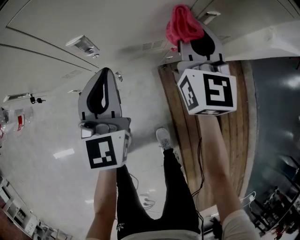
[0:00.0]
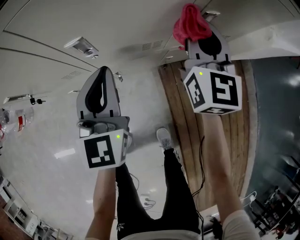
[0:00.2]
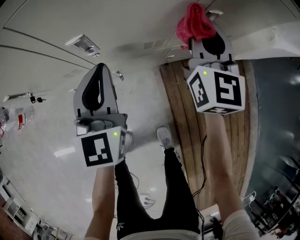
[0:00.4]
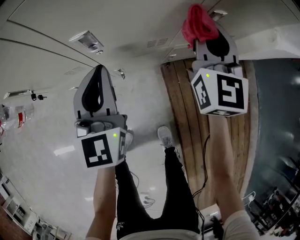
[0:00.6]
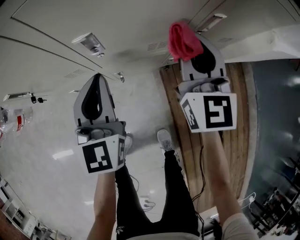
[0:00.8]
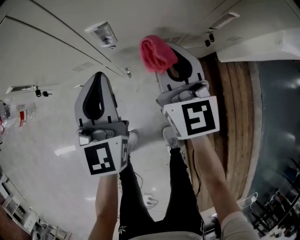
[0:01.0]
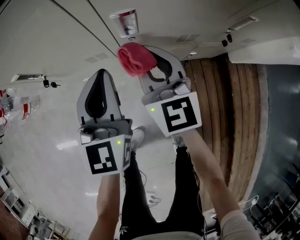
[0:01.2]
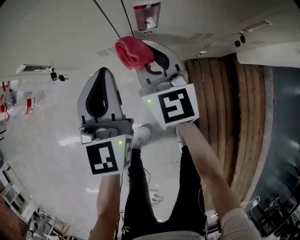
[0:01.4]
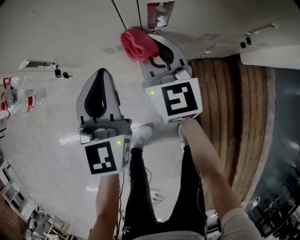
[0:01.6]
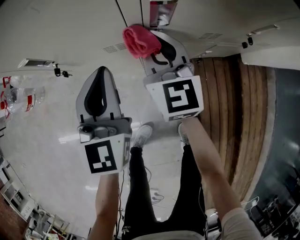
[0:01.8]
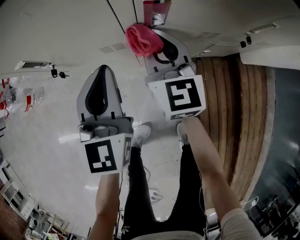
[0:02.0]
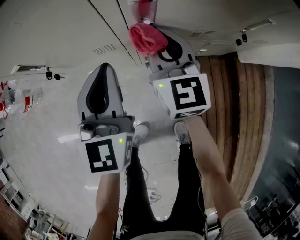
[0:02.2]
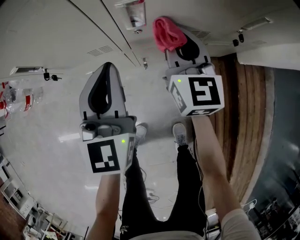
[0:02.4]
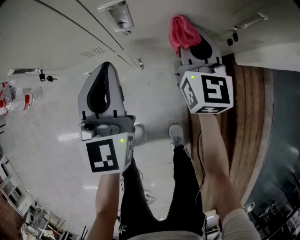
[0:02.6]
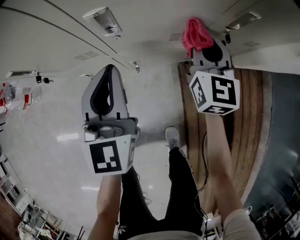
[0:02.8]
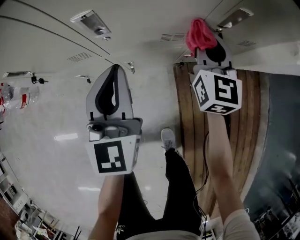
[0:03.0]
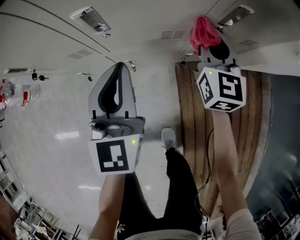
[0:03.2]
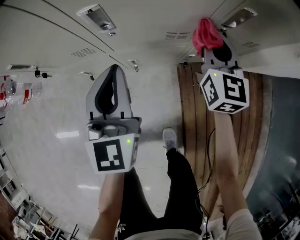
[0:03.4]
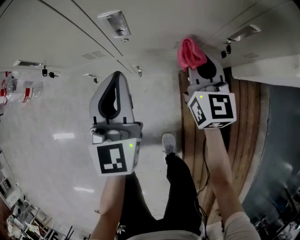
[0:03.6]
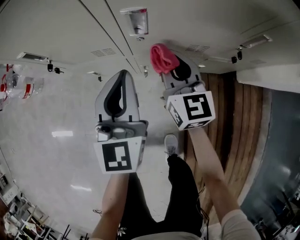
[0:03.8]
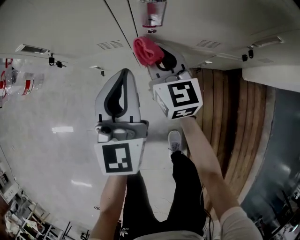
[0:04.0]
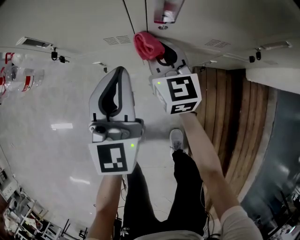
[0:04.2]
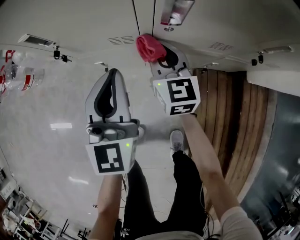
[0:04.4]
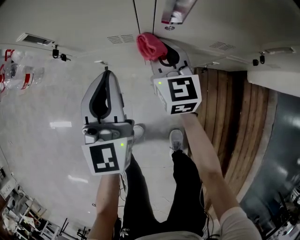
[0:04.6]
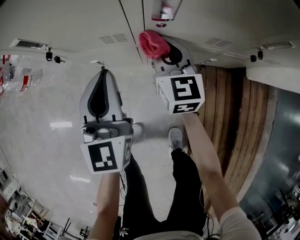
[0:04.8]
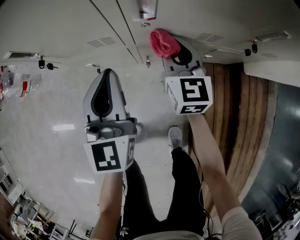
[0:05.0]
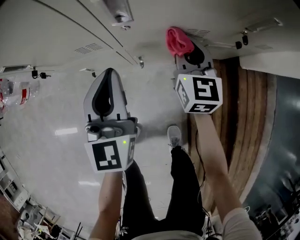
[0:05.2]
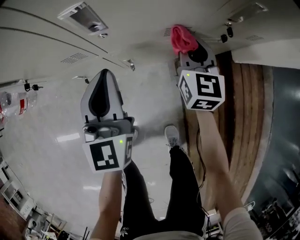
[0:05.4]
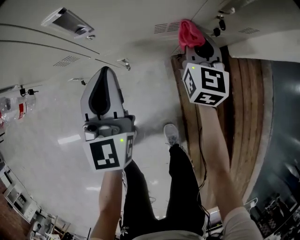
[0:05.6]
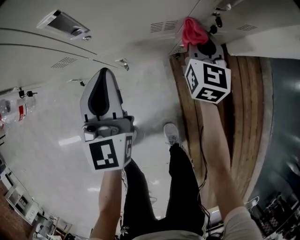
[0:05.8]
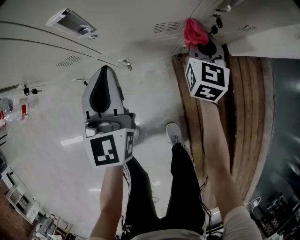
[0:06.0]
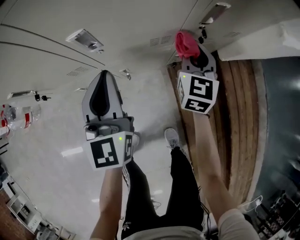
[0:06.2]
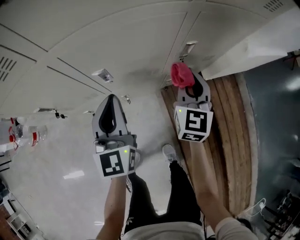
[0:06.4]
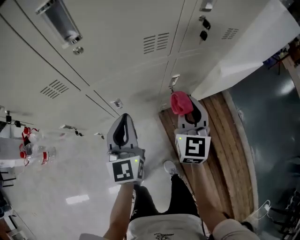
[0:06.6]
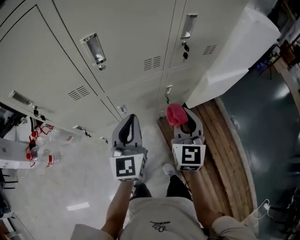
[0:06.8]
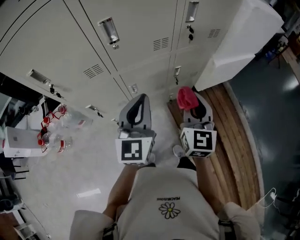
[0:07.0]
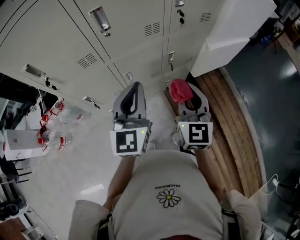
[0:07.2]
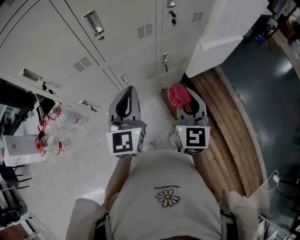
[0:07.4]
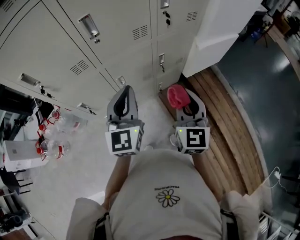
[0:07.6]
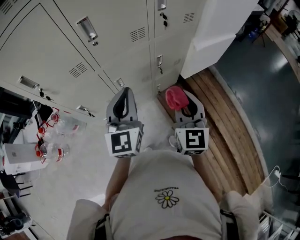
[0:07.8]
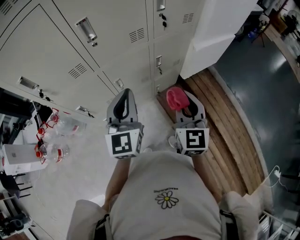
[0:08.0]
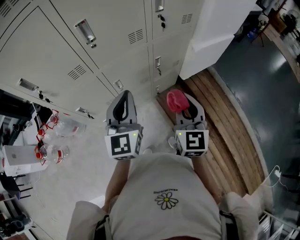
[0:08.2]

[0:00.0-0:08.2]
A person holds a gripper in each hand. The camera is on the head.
0:00.0 to 0:01.6: The right gripper travels to the left by approximately 25 cm, and rotates some 20 degrees, while the left gripper goes approximately 15 cm to the left.
0:01.6 to 0:03.2: The left gripper travels to the right by about 15 cm. The right gripper shifts approximately 30 cm to the right.
0:03.2 to 0:05.0: The right gripper heads to the left and downward, covering some 20 cm. The left gripper goes about 10 cm to the left.
0:05.0 to 0:06.6: The right gripper shifts some 25 cm to the right, downward and backward, and swivels approximately 30 degrees. The left gripper goes approximately 25 cm downward and to the right.
0:06.6 to 0:08.2: The right gripper moves backward and upward, approximately 25 cm. The left gripper moves upward and backward, approximately 20 cm.

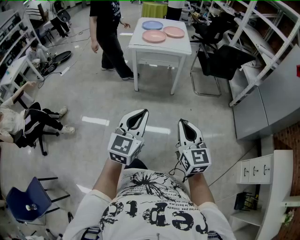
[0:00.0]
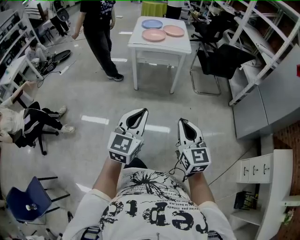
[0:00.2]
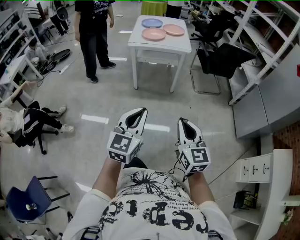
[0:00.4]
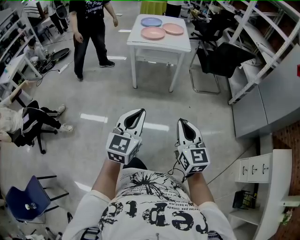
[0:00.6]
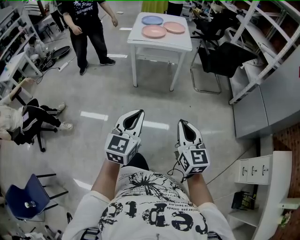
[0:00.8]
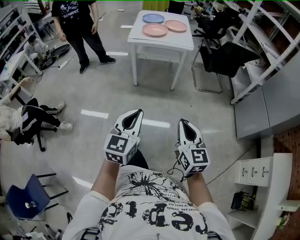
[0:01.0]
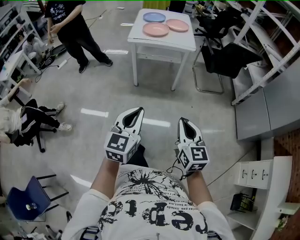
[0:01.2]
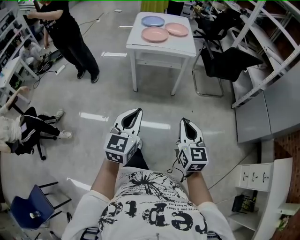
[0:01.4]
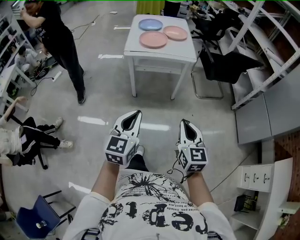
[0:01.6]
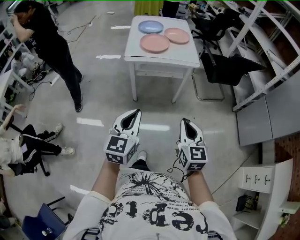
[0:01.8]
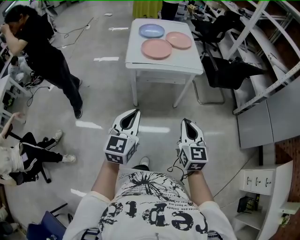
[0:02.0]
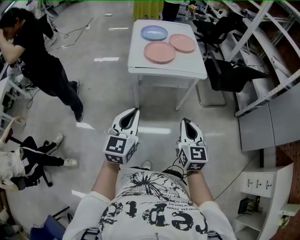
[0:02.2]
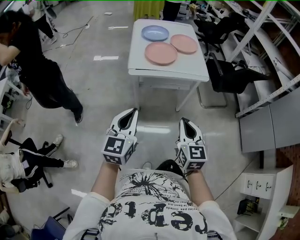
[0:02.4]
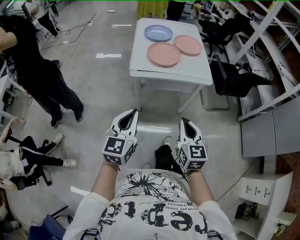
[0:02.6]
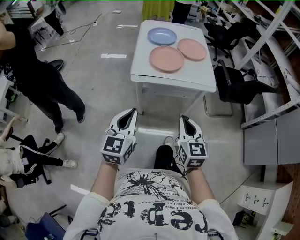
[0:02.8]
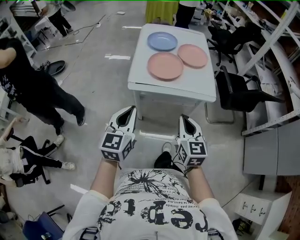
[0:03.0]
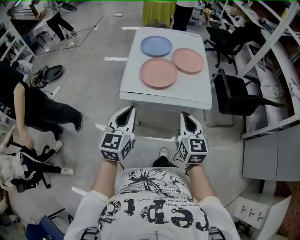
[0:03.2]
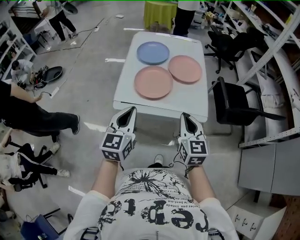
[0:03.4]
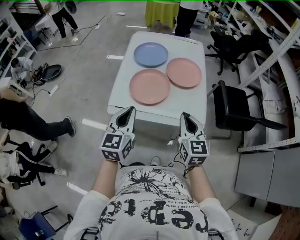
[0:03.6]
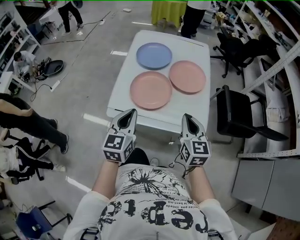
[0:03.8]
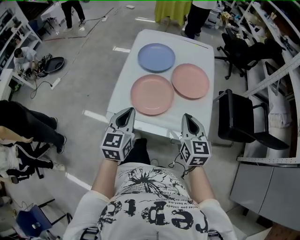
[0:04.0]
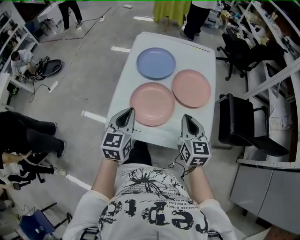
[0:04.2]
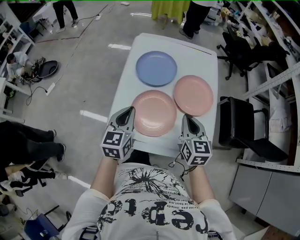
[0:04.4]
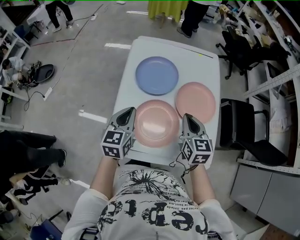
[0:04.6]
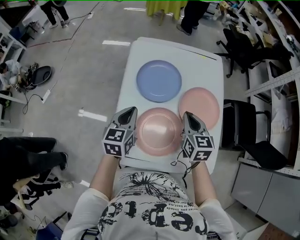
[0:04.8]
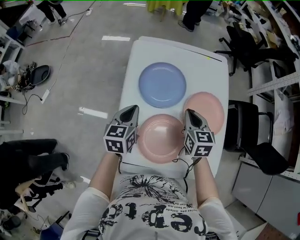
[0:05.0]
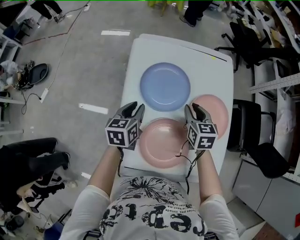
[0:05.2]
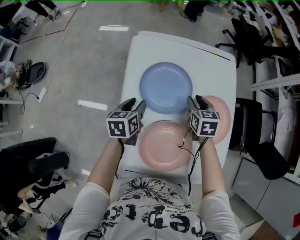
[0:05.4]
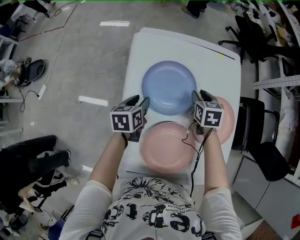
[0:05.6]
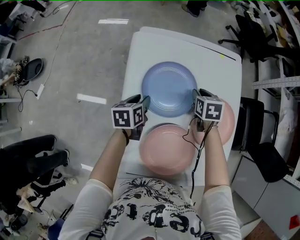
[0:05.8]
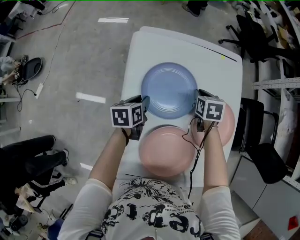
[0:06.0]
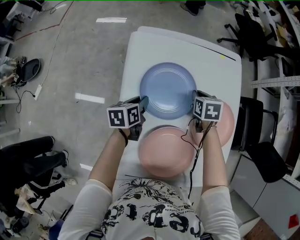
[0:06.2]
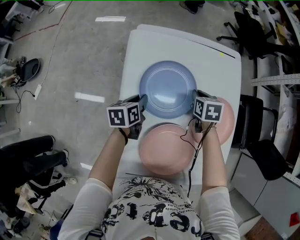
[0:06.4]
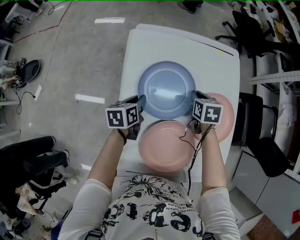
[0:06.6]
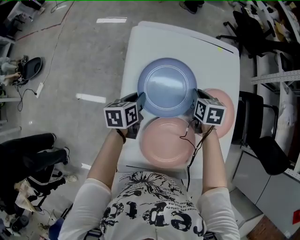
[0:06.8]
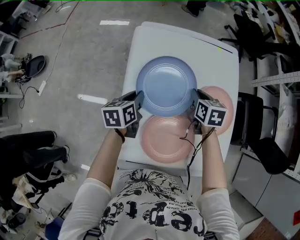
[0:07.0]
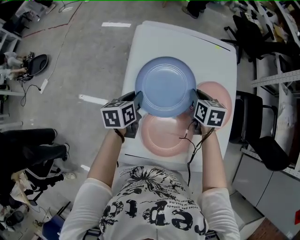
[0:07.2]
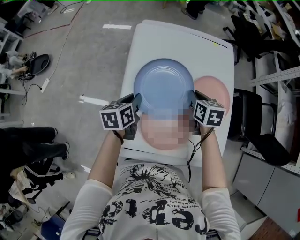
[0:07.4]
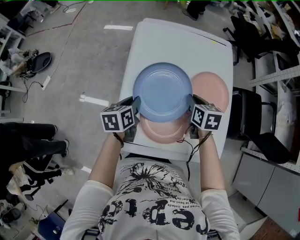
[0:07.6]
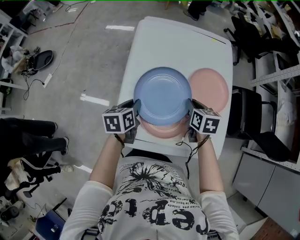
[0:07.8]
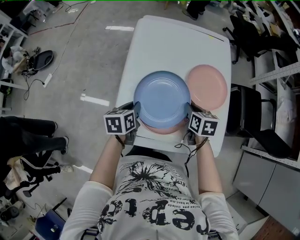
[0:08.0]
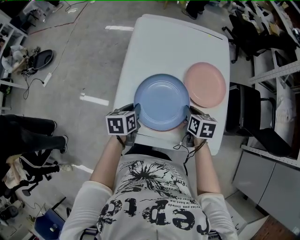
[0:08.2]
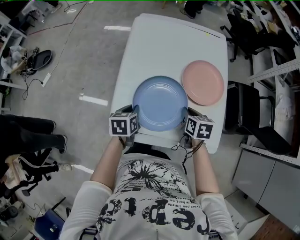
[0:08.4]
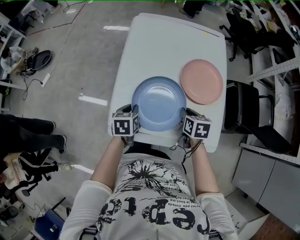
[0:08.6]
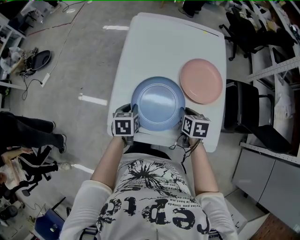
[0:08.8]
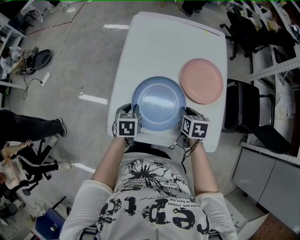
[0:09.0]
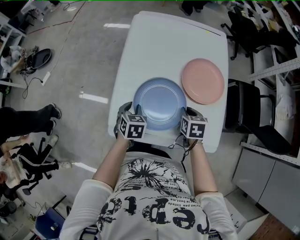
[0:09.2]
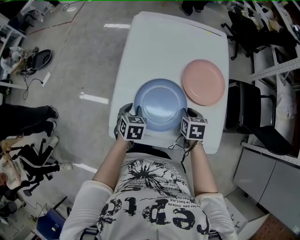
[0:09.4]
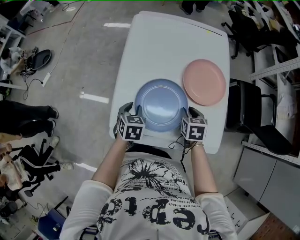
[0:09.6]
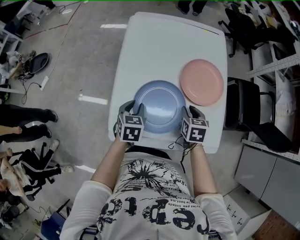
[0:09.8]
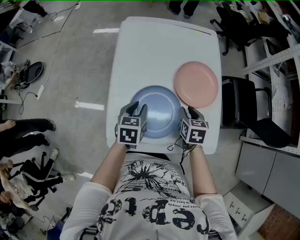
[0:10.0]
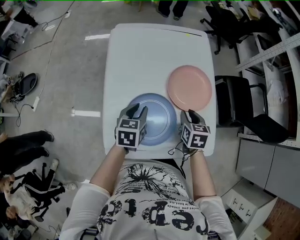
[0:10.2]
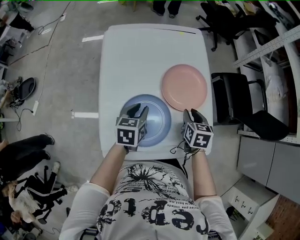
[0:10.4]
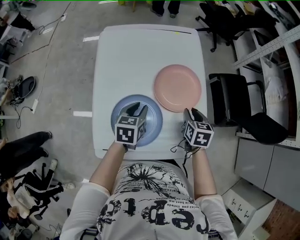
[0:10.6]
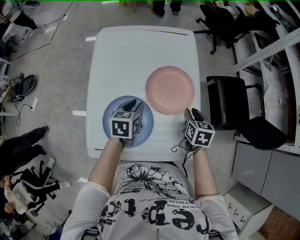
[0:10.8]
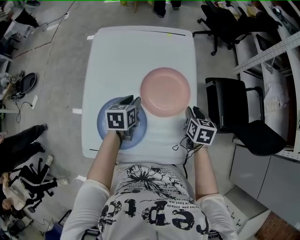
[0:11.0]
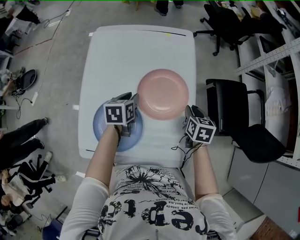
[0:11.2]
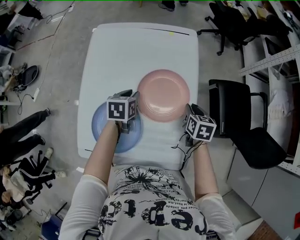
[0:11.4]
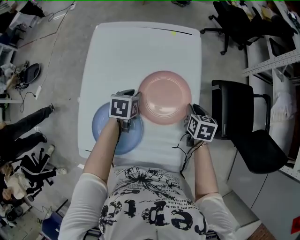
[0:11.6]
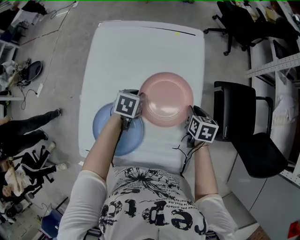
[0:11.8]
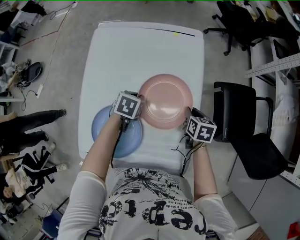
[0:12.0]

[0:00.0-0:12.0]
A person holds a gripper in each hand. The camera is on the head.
0:00.0 to 0:01.6: The two grippers go some 25 cm forward.
0:01.6 to 0:03.0: The two grippers travel together, forward, about 40 cm.
0:03.0 to 0:04.4: The two grippers travel together, forward, roughly 50 cm.
0:04.4 to 0:06.0: Both grippers move forward and downward, roughly 40 cm. The left gripper changes its angle by roughly 40 degrees, and opens its fingers. Meanwhile the right gripper tilts its fingers about 40 degrees downward.
0:06.0 to 0:07.6: The left gripper goes roughly 20 cm backward and upward, while the right gripper goes approximately 20 cm backward.
0:07.6 to 0:09.0: The grippers both shift backward and downward by roughly 15 cm. The left gripper rotates about 20 degrees.
0:09.0 to 0:10.4: The left gripper moves some 15 cm, and changes its angle by about 20 degrees, while the right gripper moves approximately 10 cm.
0:10.4 to 0:12.0: Both grippers travel together forward, to the right and downward, some 20 cm. The left gripper swivels some 20 degrees.

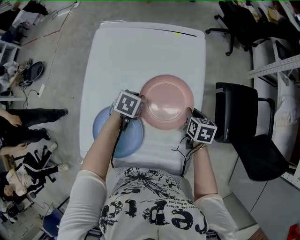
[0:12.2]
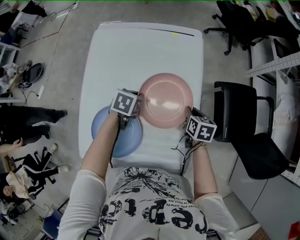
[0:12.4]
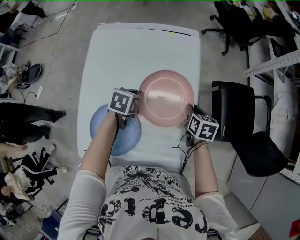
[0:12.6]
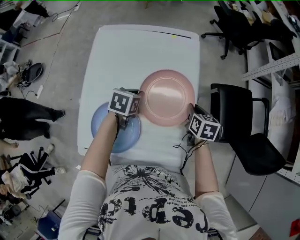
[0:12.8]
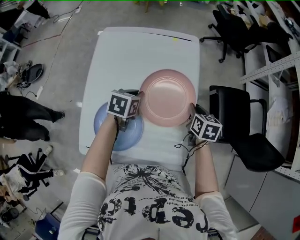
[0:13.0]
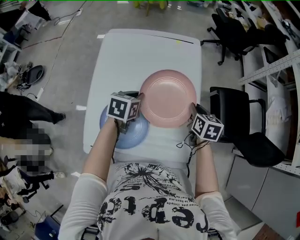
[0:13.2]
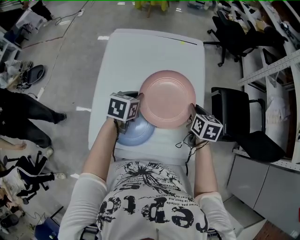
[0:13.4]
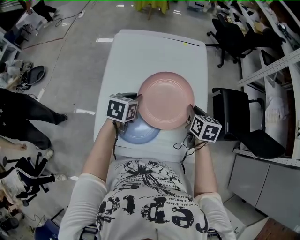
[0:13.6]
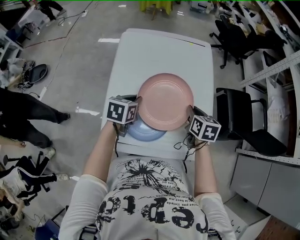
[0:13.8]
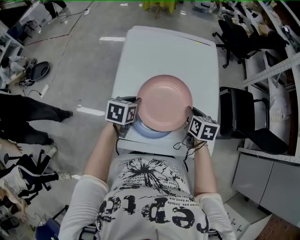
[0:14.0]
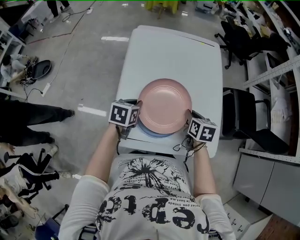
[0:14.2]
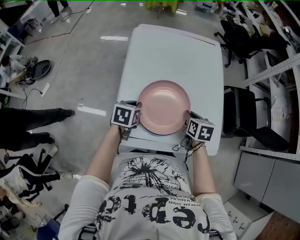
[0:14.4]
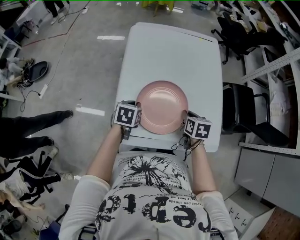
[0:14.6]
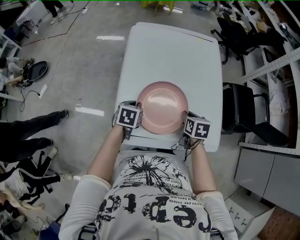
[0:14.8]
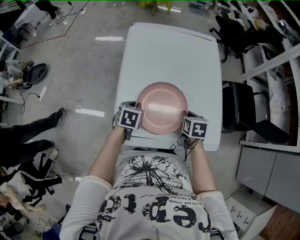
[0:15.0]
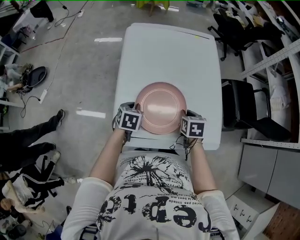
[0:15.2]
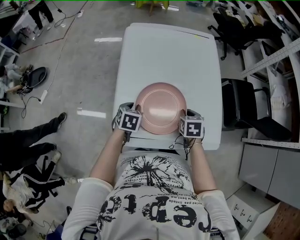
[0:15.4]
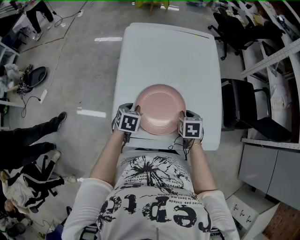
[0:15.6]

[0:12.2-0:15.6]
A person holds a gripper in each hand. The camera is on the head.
0:12.2 to 0:13.8: The left gripper travels backward, to the left and upward by some 25 cm, and turns by approximately 20 degrees, while the right gripper heads to the left, backward and upward, covering roughly 25 cm.
0:13.8 to 0:15.6: The right gripper goes about 15 cm backward, downward and to the left. Meanwhile the left gripper travels downward, to the left and backward by roughly 15 cm.
